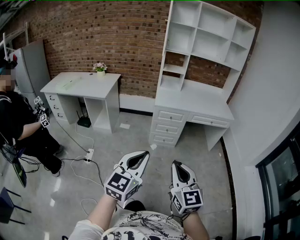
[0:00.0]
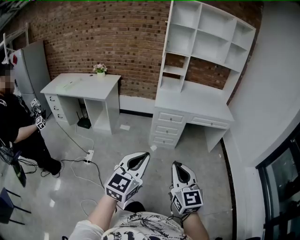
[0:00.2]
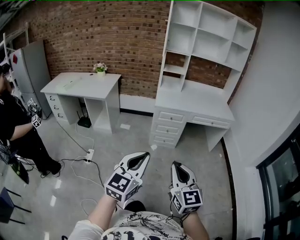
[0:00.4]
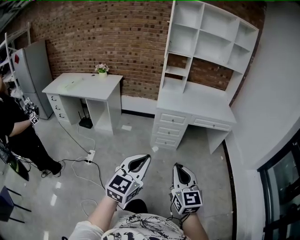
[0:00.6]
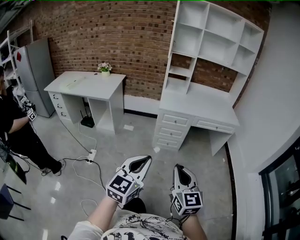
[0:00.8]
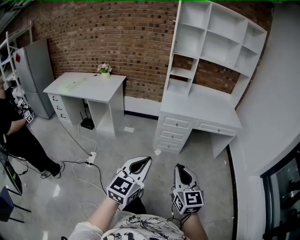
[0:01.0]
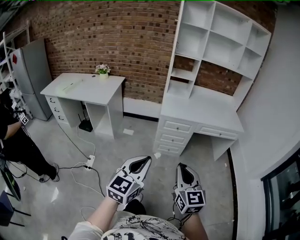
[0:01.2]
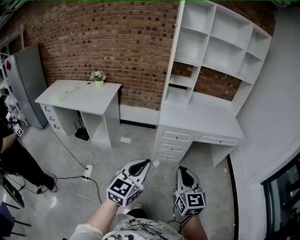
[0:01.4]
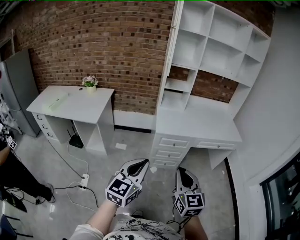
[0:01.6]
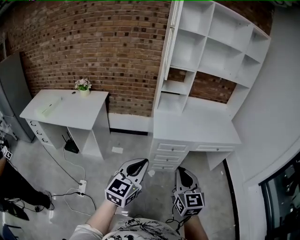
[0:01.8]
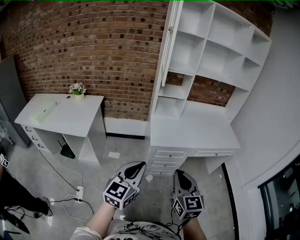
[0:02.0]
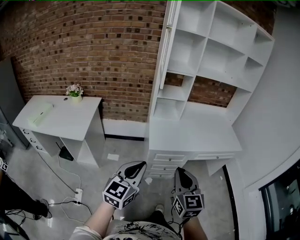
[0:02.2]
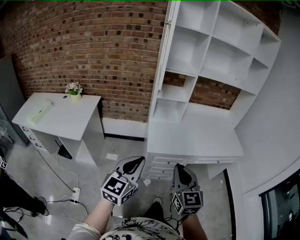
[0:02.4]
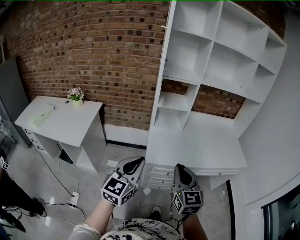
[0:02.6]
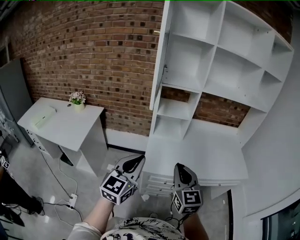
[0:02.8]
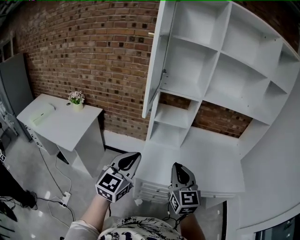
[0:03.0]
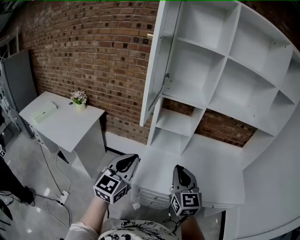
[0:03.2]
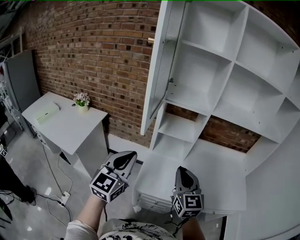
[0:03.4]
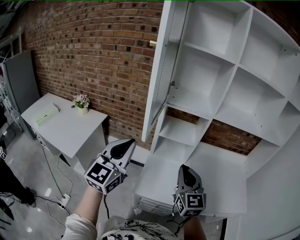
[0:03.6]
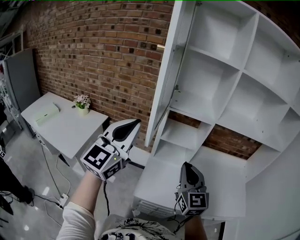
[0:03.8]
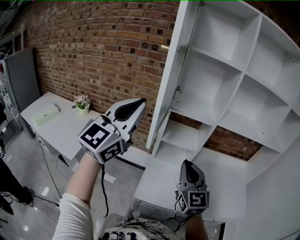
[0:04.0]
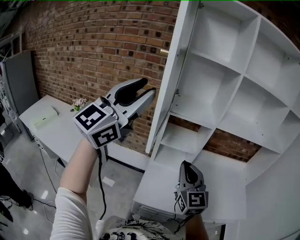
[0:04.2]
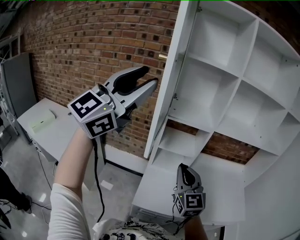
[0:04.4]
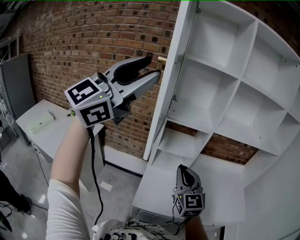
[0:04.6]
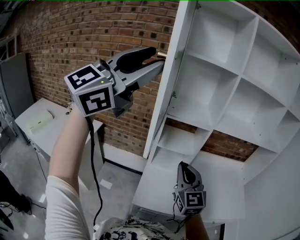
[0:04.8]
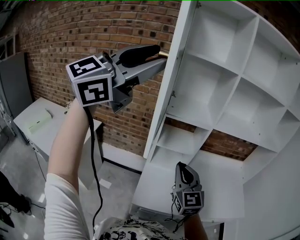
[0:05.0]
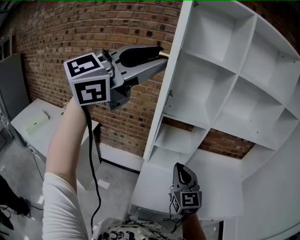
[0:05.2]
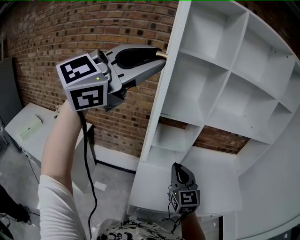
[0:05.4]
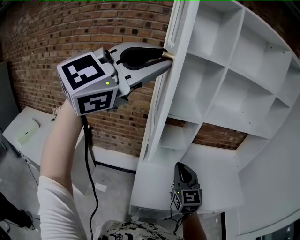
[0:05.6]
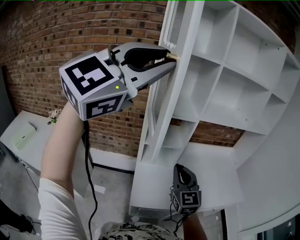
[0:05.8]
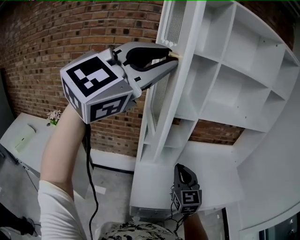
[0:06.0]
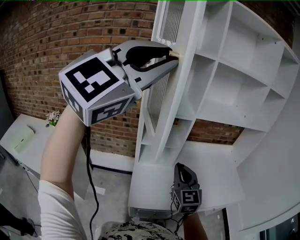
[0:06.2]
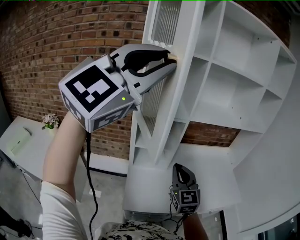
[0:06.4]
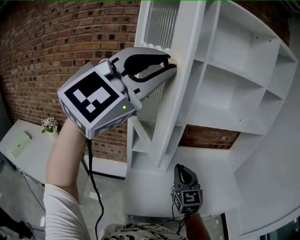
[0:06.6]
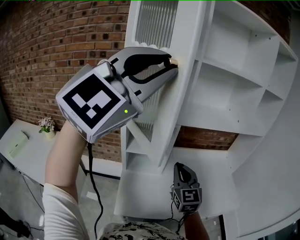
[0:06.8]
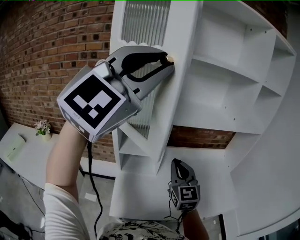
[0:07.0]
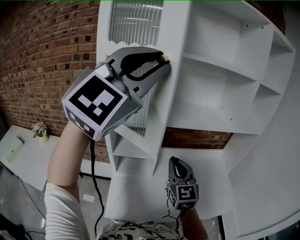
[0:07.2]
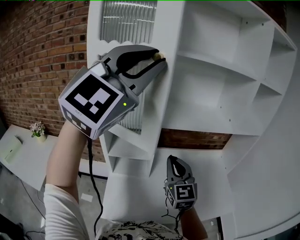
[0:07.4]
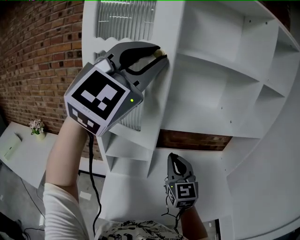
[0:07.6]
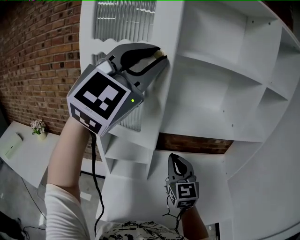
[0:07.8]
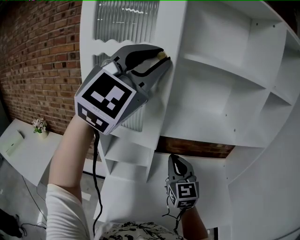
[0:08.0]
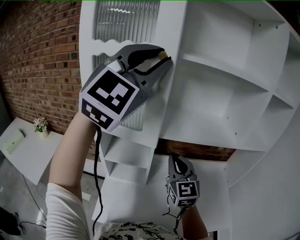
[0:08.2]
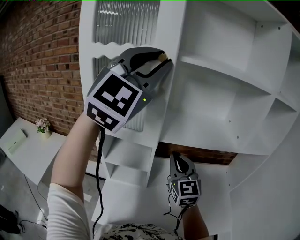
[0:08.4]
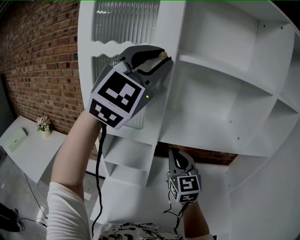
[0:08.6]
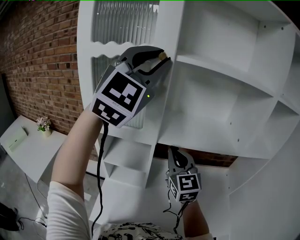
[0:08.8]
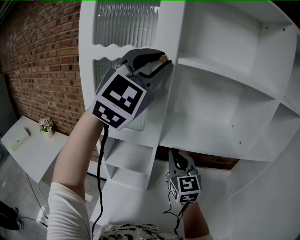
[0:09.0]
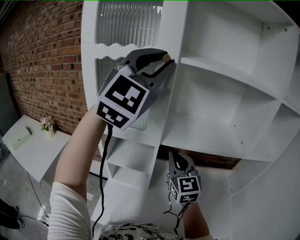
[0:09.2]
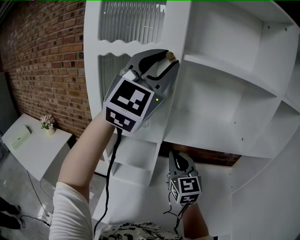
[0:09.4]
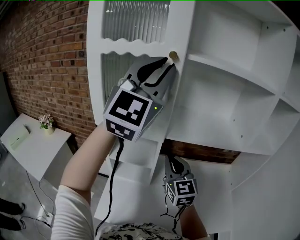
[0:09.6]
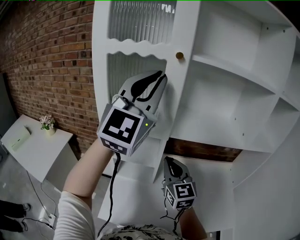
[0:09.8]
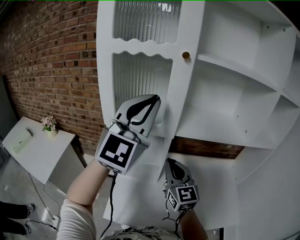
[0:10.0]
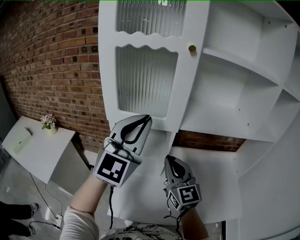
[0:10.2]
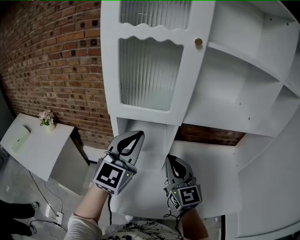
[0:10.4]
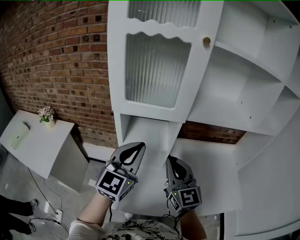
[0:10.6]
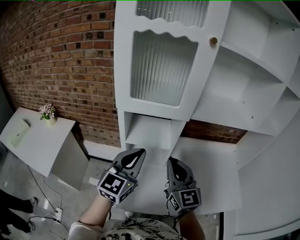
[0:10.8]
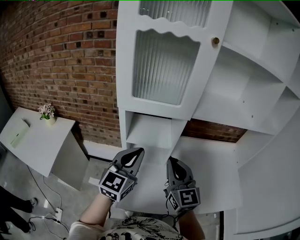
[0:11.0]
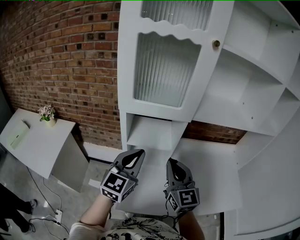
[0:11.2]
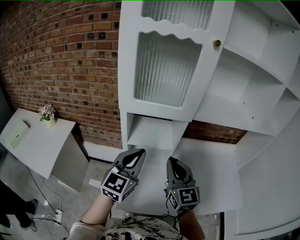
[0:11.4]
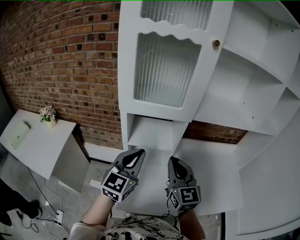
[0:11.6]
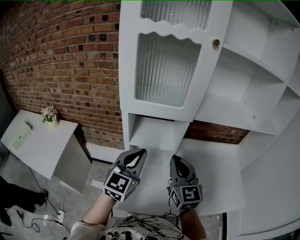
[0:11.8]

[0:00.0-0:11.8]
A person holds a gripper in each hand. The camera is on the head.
0:00.0 to 0:01.4: Both grippers travel together forward, about 25 cm.
0:01.4 to 0:03.0: The pair of grippers is taken forward, roughly 50 cm.
0:03.0 to 0:04.4: The left gripper is displaced upward and forward by some 40 cm, changes its angle by about 30 degrees, and opens its fingers. Meanwhile the right gripper shifts about 15 cm forward.
0:04.4 to 0:06.0: The left gripper is displaced to the right by some 10 cm, and changes its angle by approximately 20 degrees. Meanwhile the right gripper changes place by some 5 cm.
0:06.0 to 0:07.4: The grippers both shift forward and to the right by some 20 cm.
0:07.4 to 0:08.8: Both grippers travel together forward, about 10 cm.
0:08.8 to 0:10.4: The right gripper travels backward, to the left and downward by approximately 15 cm. The left gripper travels downward and to the left by some 30 cm, rotates about 30 degrees, and closes its fingers.
0:10.4 to 0:11.8: The left gripper is displaced downward by about 10 cm.

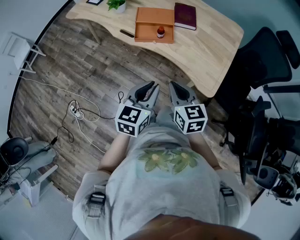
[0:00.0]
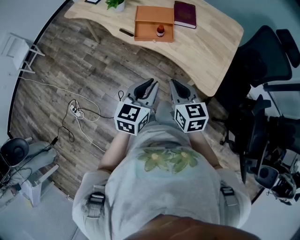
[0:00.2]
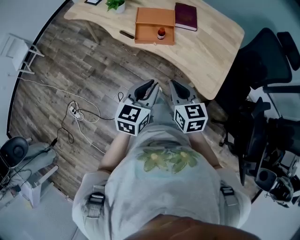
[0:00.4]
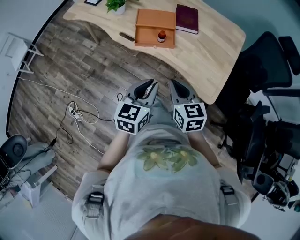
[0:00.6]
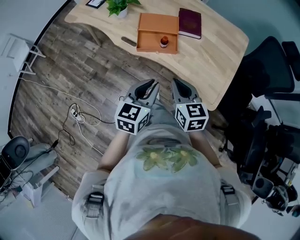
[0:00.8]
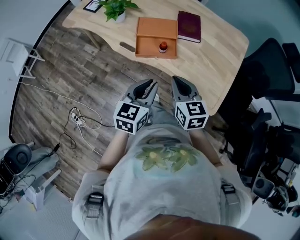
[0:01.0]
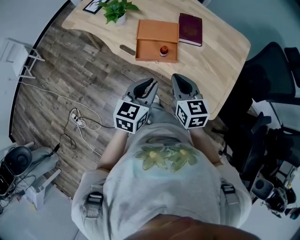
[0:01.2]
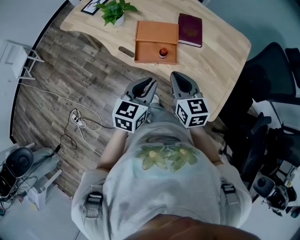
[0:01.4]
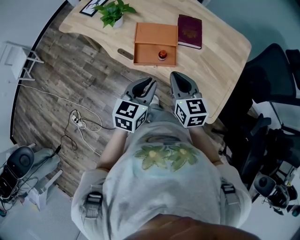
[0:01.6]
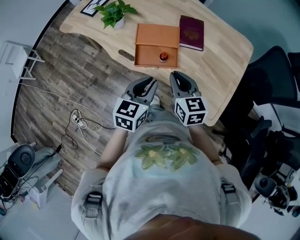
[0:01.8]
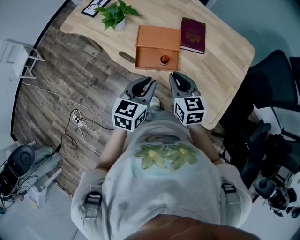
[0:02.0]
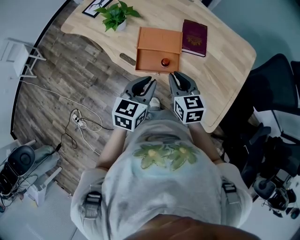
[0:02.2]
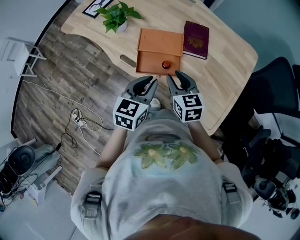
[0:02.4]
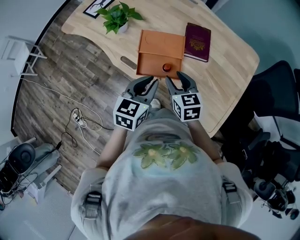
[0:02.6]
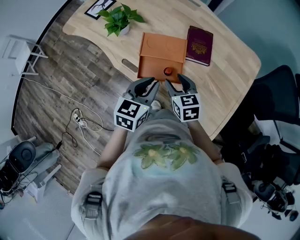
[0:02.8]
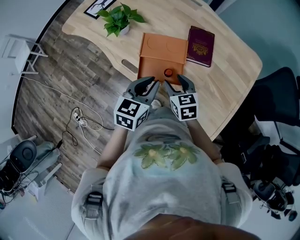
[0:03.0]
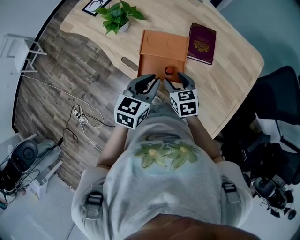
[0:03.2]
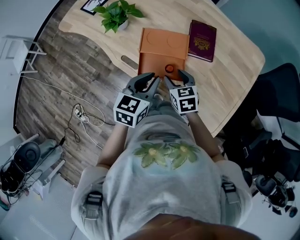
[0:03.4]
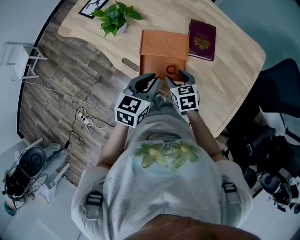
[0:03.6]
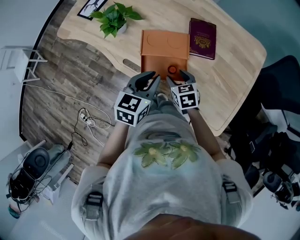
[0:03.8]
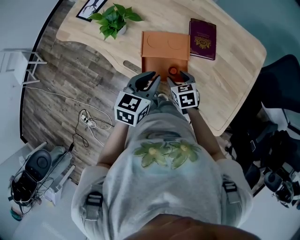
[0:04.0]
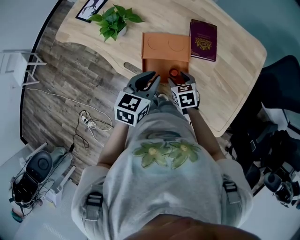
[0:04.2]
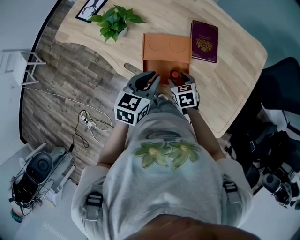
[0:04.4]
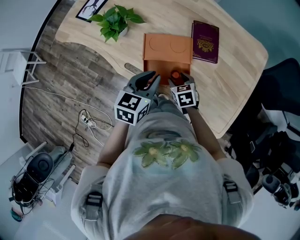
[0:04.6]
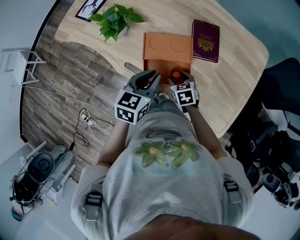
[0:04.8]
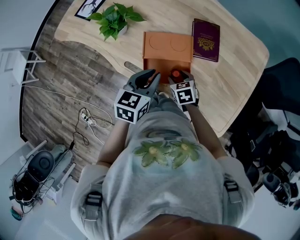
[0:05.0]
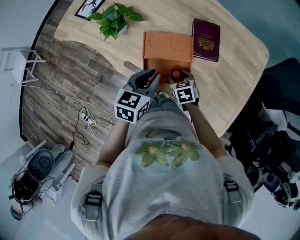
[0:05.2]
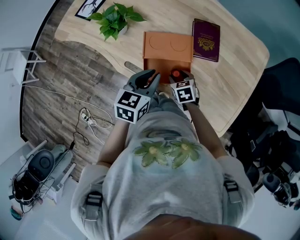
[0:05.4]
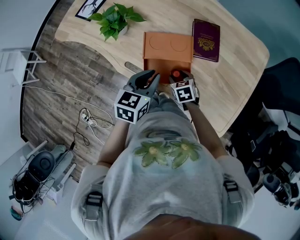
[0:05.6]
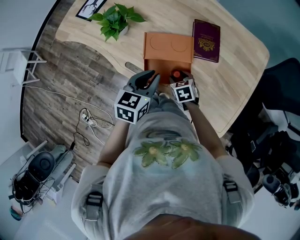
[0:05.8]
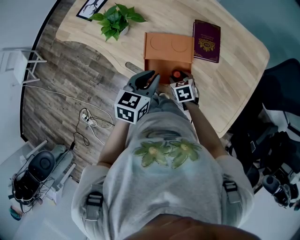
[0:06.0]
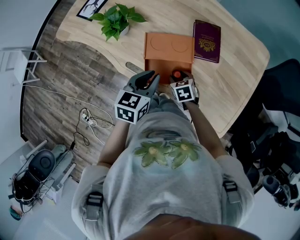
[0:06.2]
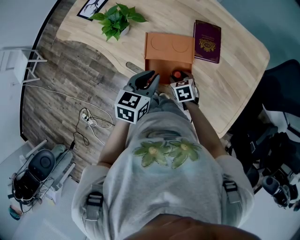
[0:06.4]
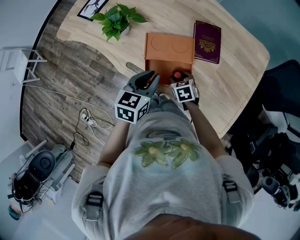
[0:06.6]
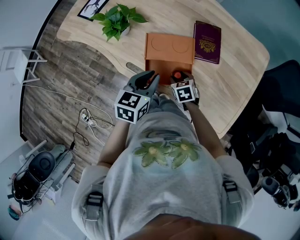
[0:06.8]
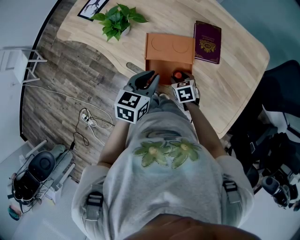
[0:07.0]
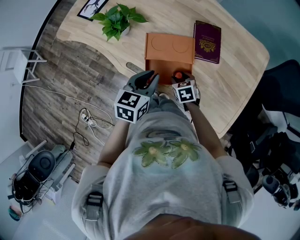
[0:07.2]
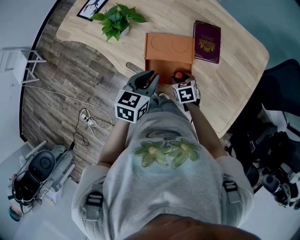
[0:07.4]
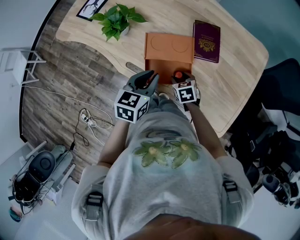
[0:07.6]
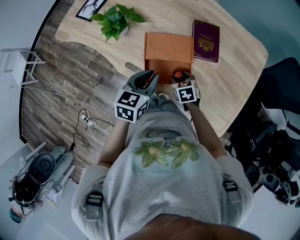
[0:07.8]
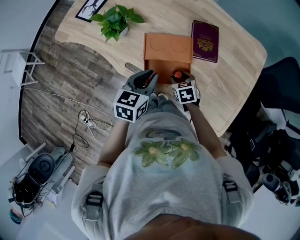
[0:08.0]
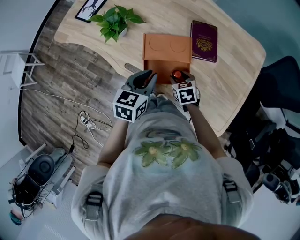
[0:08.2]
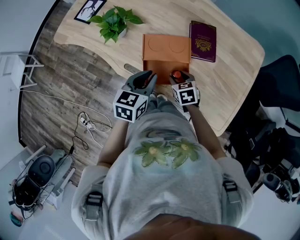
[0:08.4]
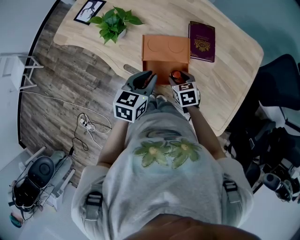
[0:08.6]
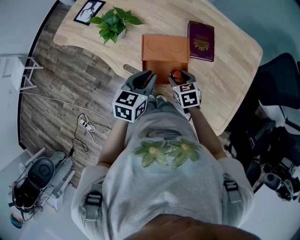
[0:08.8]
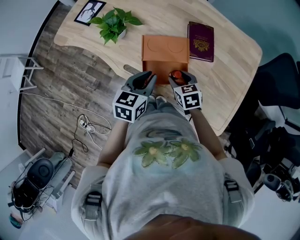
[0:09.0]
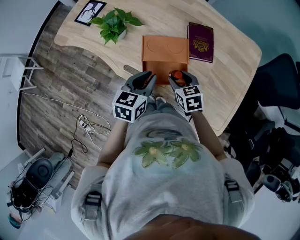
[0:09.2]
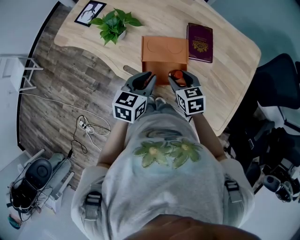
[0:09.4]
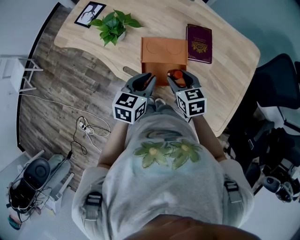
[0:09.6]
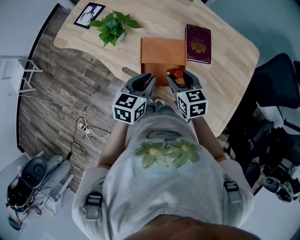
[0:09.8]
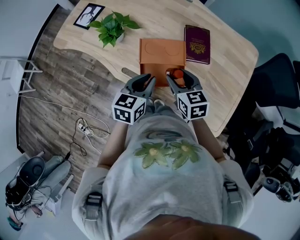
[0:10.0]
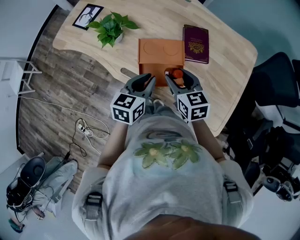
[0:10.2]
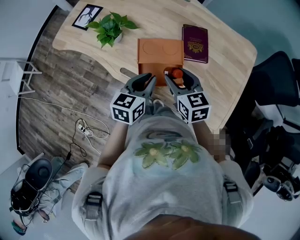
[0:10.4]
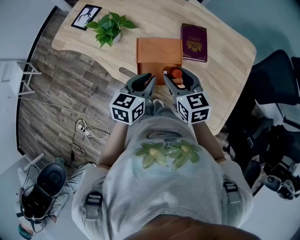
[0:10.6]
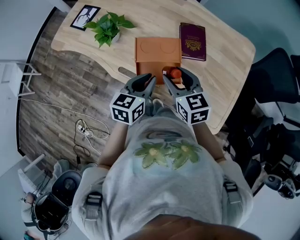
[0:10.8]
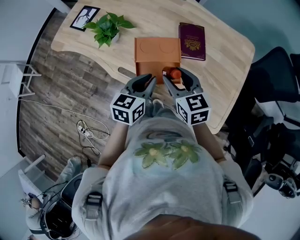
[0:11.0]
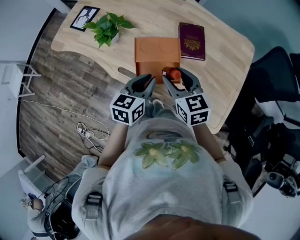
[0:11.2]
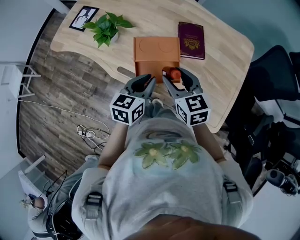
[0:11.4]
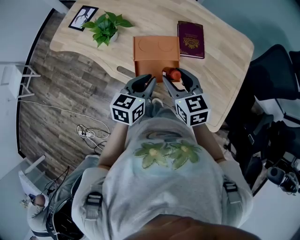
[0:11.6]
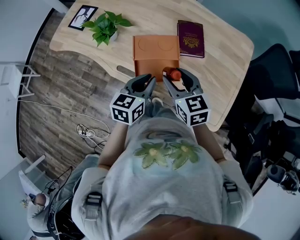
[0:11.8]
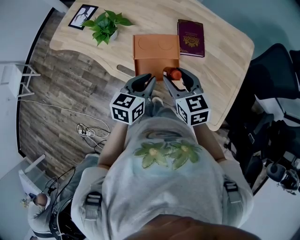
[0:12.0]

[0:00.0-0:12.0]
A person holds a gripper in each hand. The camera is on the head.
0:00.0 to 0:01.6: Both grippers move forward, approximately 20 cm.
0:01.6 to 0:03.0: The left gripper travels forward by about 10 cm; the right gripper heads forward and downward, covering approximately 15 cm, and opens.
0:03.0 to 0:04.4: The left gripper heads forward, covering some 5 cm. The right gripper is displaced downward by approximately 10 cm.
0:04.4 to 0:06.0: The grippers stay close to where they were, moving slightly.
0:06.0 to 0:07.6: Neither gripper changes place.
0:07.6 to 0:09.0: The right gripper shifts approximately 10 cm upward.
0:09.0 to 0:10.4: The right gripper heads upward, covering some 15 cm.
0:10.4 to 0:12.0: The grippers make only small movements.
